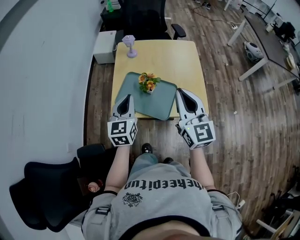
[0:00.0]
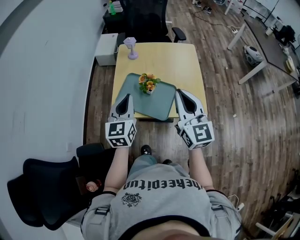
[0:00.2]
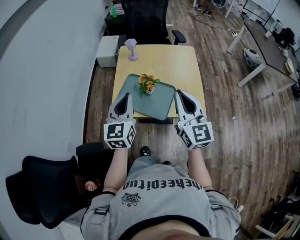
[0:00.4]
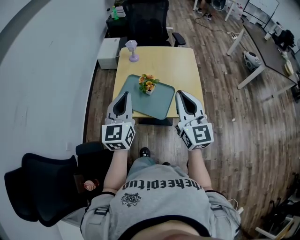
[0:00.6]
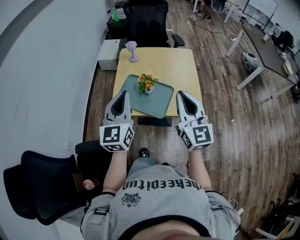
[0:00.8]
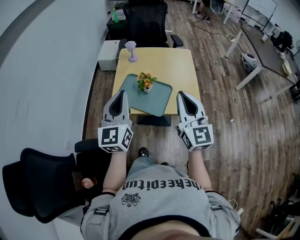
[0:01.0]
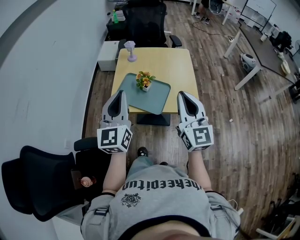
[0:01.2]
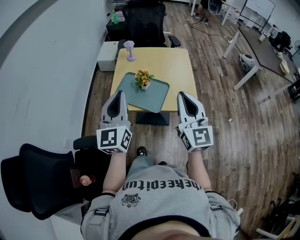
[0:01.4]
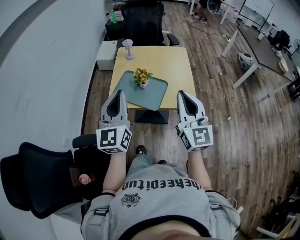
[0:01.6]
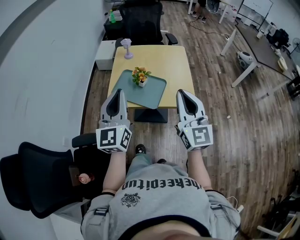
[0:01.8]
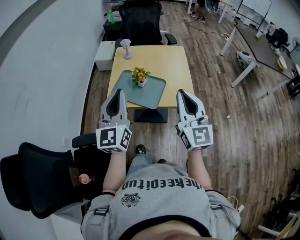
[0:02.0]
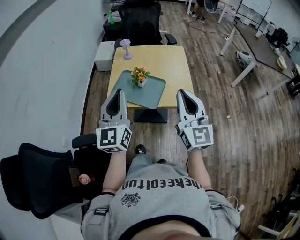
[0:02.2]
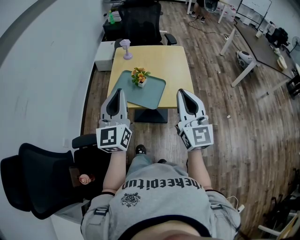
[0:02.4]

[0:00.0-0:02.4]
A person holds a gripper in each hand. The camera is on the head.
0:00.0 to 0:01.2: The right gripper moves backward, roughly 10 cm; the left gripper heads upward and backward, covering roughly 20 cm, and changes its angle by about 20 degrees.
0:01.2 to 0:02.4: The right gripper moves roughly 5 cm.

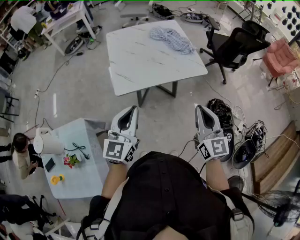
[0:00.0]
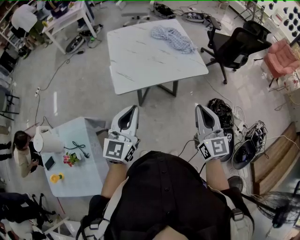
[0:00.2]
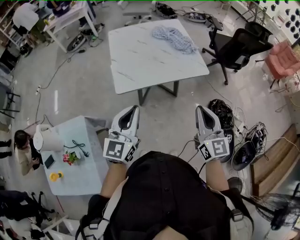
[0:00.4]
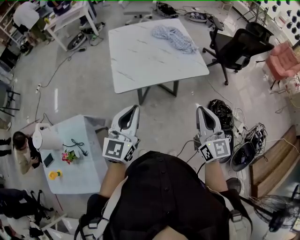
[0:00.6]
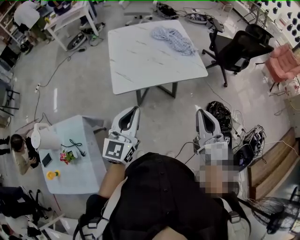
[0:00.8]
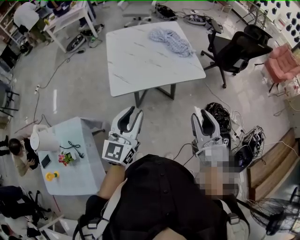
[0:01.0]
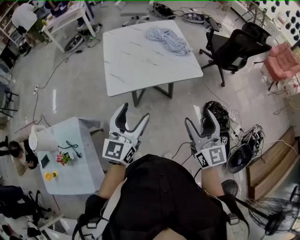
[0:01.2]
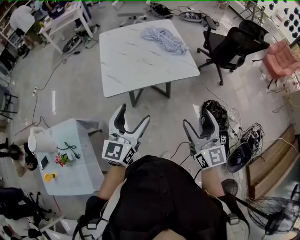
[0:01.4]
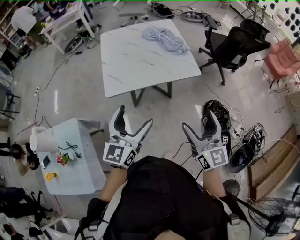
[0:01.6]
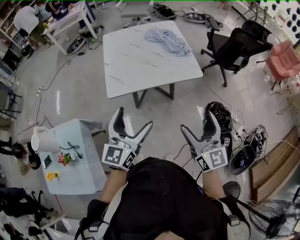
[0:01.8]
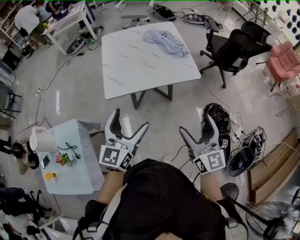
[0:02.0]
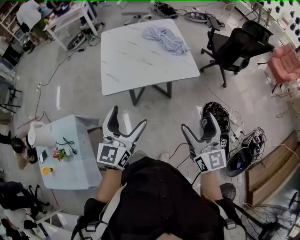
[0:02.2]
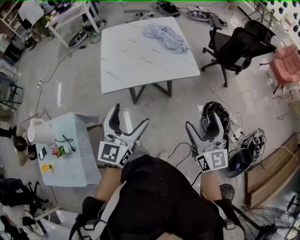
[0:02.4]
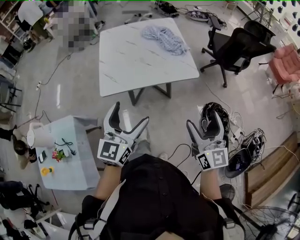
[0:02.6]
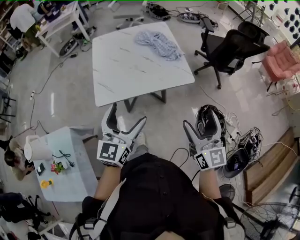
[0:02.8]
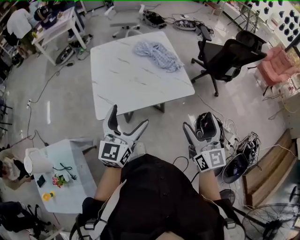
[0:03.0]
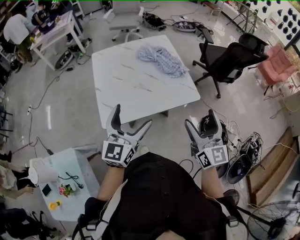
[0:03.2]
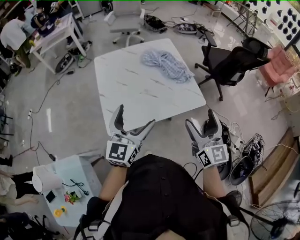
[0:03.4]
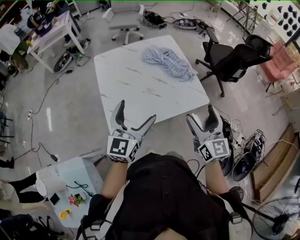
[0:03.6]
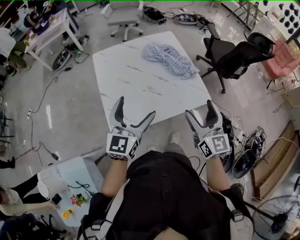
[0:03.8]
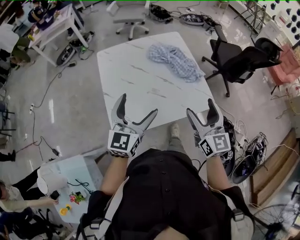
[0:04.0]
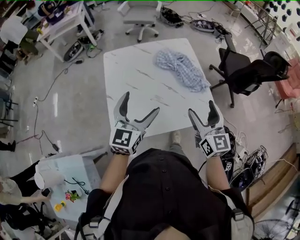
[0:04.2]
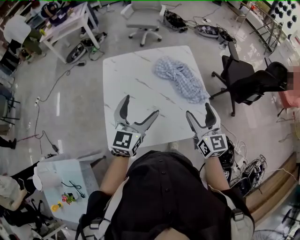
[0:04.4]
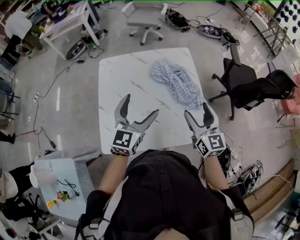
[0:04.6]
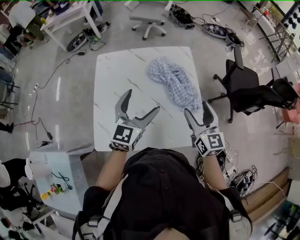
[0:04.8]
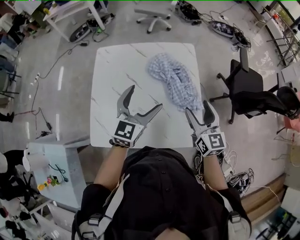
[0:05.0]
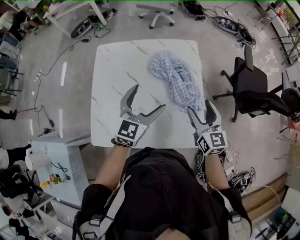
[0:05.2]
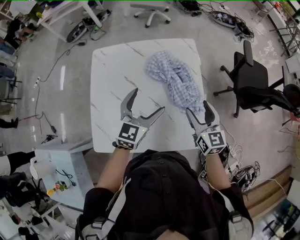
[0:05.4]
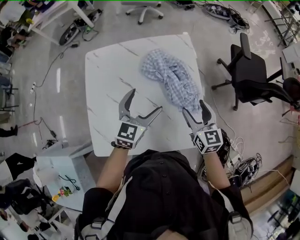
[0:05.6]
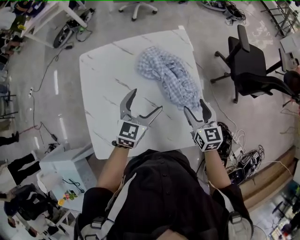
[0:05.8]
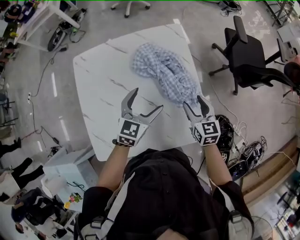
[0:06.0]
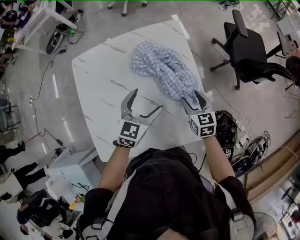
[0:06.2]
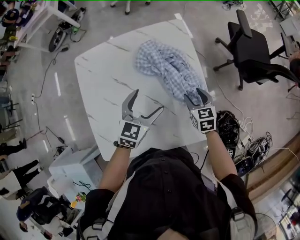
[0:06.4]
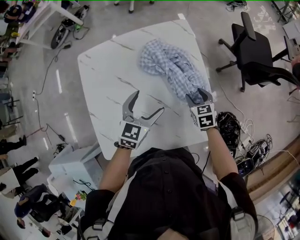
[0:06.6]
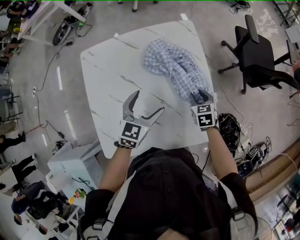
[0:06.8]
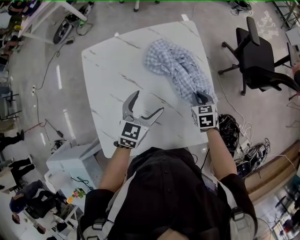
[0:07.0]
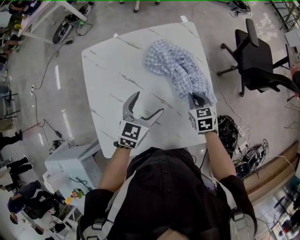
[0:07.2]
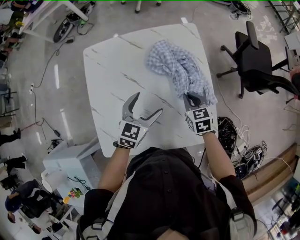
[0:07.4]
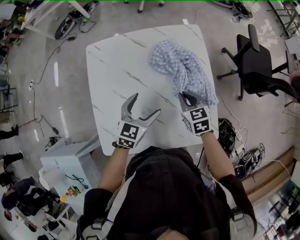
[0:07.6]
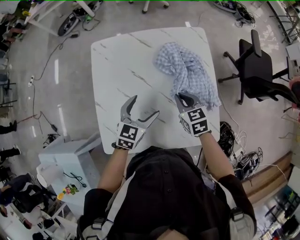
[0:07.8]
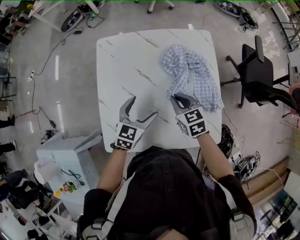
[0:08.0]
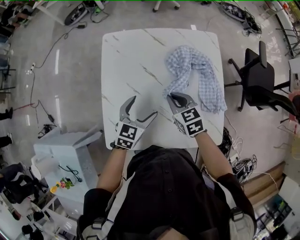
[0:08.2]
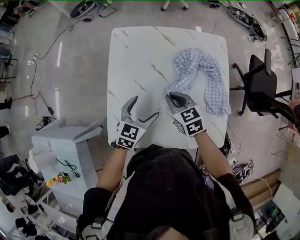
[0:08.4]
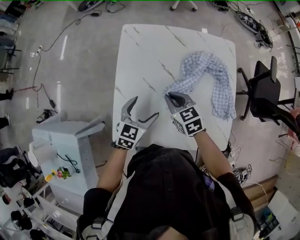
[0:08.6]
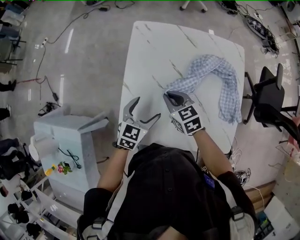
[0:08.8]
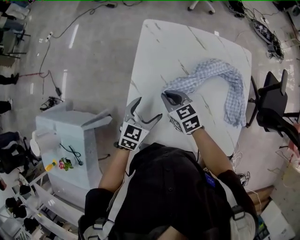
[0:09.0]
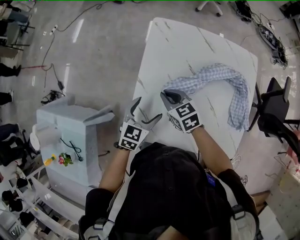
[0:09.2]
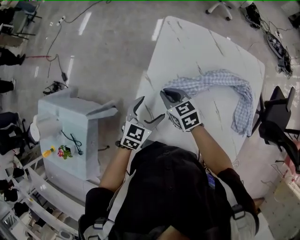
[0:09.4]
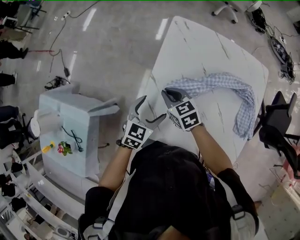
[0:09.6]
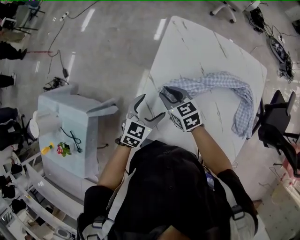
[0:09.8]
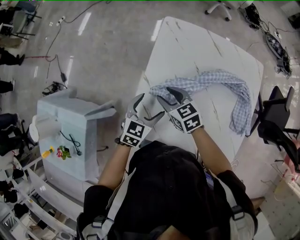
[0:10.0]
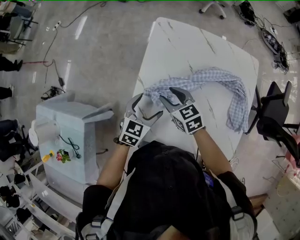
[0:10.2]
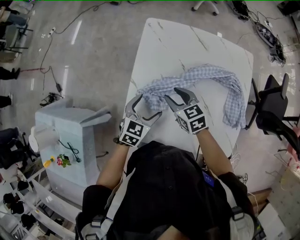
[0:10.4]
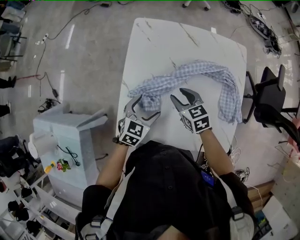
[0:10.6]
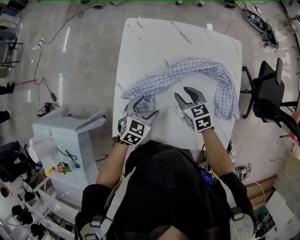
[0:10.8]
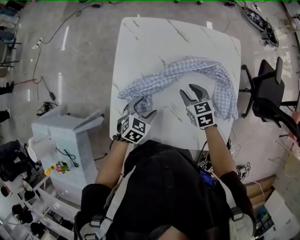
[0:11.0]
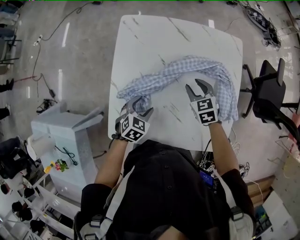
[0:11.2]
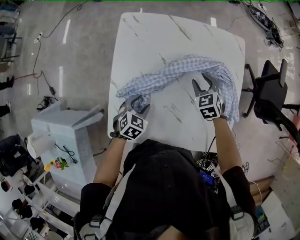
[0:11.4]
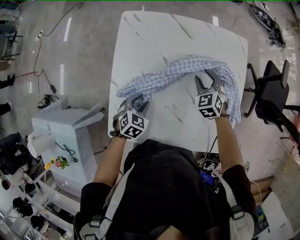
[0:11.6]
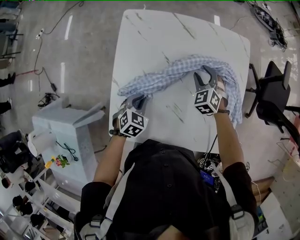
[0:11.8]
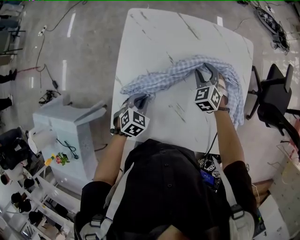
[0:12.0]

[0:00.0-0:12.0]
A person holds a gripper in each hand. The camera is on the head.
0:00.0 to 0:01.6: Both grippers move to the right, some 10 cm. The left gripper opens; the right gripper opens.
0:01.6 to 0:03.0: Both grippers travel together forward, some 15 cm.
0:03.0 to 0:04.4: The grippers both shift forward by about 30 cm.
0:04.4 to 0:06.0: The right gripper heads downward, forward and to the right, covering some 25 cm, and rotates about 30 degrees, while the left gripper is displaced forward, downward and to the right by some 25 cm, and turns by roughly 20 degrees.
0:06.0 to 0:07.6: The left gripper is displaced to the left by some 10 cm. The right gripper goes roughly 10 cm to the left, and closes up.
0:07.6 to 0:09.0: The left gripper ends up roughly 20 cm from where it was; the right gripper shifts by some 30 cm, and turns by roughly 30 degrees.
0:09.0 to 0:10.4: The right gripper travels to the left and back again, roughly 10 cm each way, and opens.
0:10.4 to 0:12.0: The right gripper is displaced to the right, forward and downward by some 25 cm, and changes its angle by about 40 degrees; the left gripper shifts roughly 10 cm downward, turns by approximately 20 degrees, and closes its fingers.

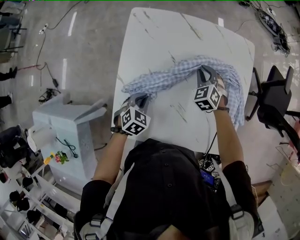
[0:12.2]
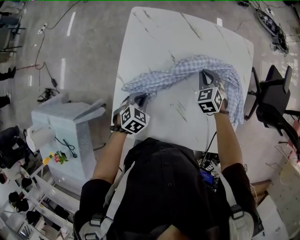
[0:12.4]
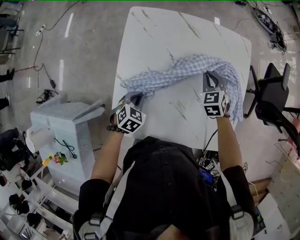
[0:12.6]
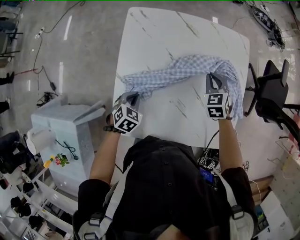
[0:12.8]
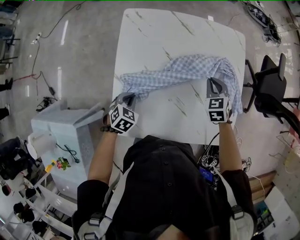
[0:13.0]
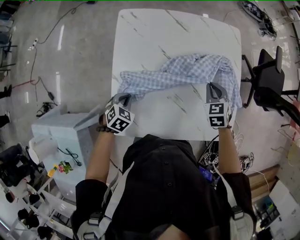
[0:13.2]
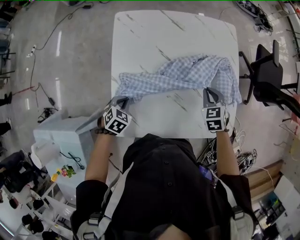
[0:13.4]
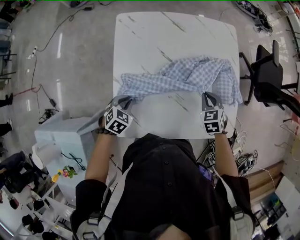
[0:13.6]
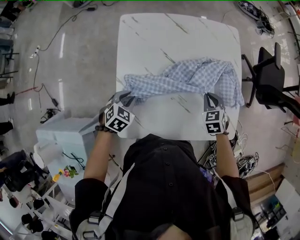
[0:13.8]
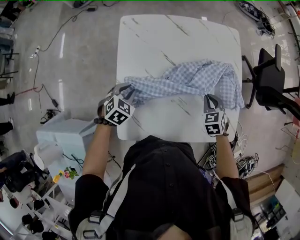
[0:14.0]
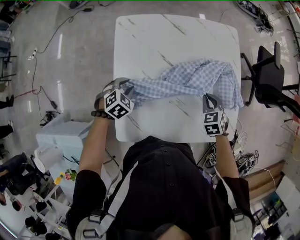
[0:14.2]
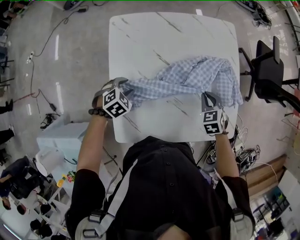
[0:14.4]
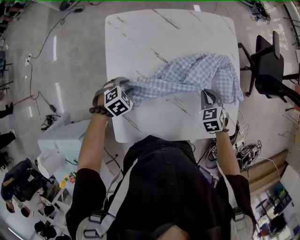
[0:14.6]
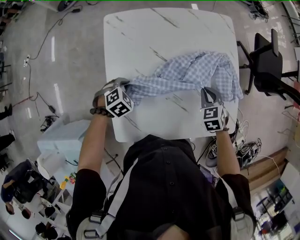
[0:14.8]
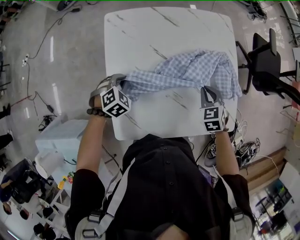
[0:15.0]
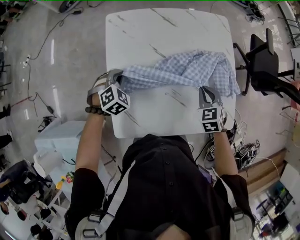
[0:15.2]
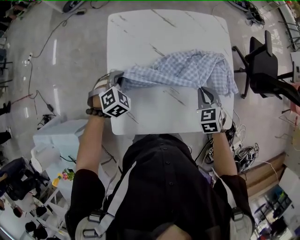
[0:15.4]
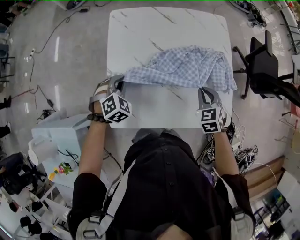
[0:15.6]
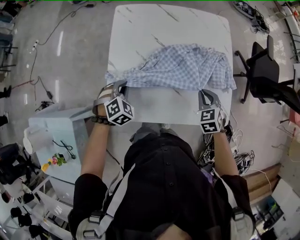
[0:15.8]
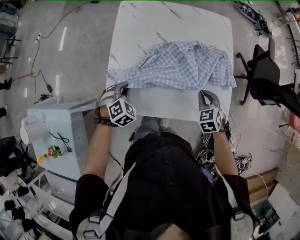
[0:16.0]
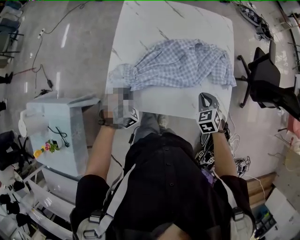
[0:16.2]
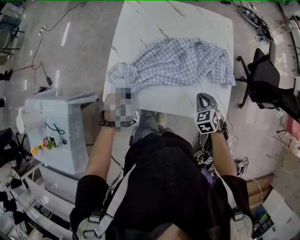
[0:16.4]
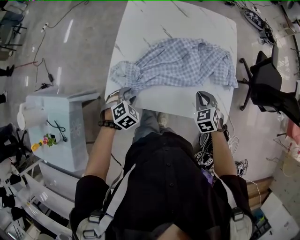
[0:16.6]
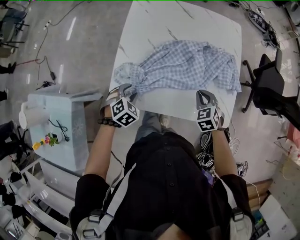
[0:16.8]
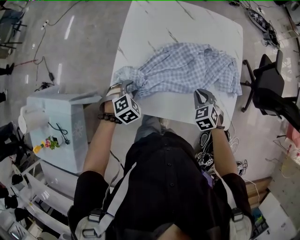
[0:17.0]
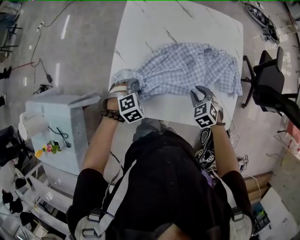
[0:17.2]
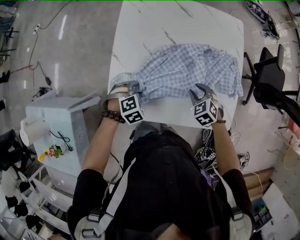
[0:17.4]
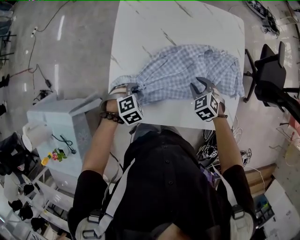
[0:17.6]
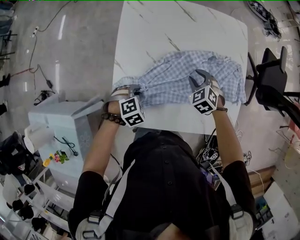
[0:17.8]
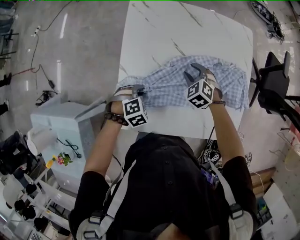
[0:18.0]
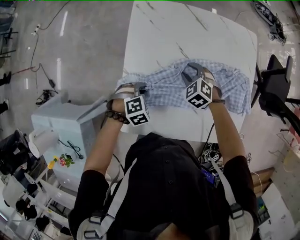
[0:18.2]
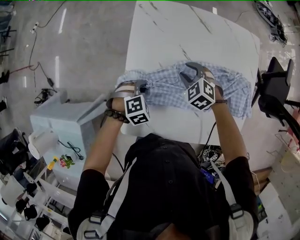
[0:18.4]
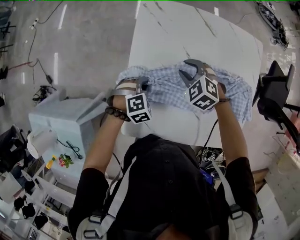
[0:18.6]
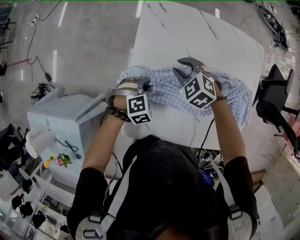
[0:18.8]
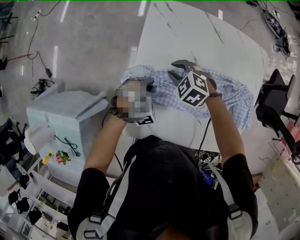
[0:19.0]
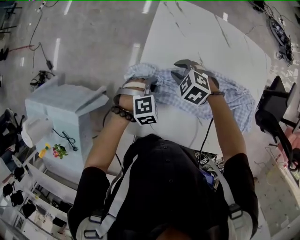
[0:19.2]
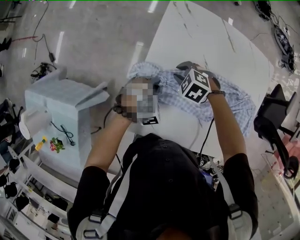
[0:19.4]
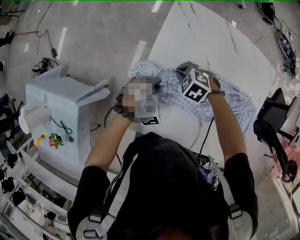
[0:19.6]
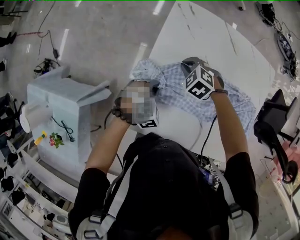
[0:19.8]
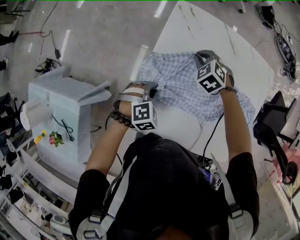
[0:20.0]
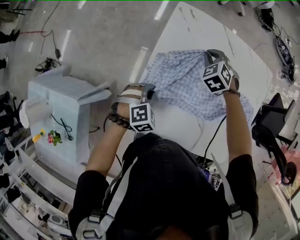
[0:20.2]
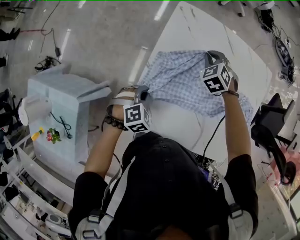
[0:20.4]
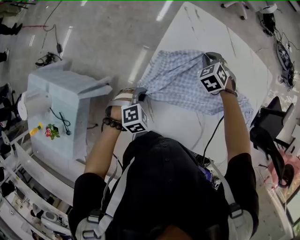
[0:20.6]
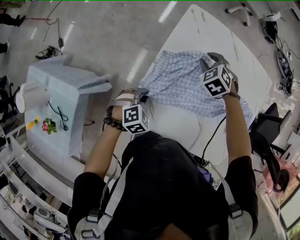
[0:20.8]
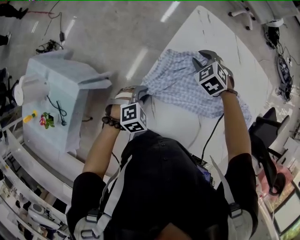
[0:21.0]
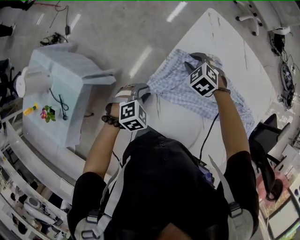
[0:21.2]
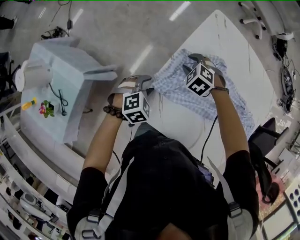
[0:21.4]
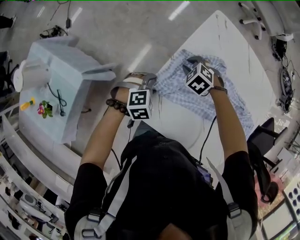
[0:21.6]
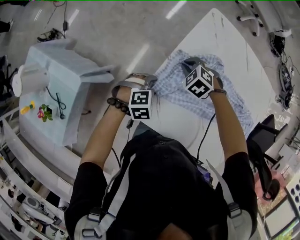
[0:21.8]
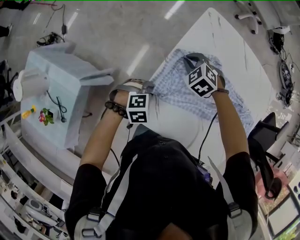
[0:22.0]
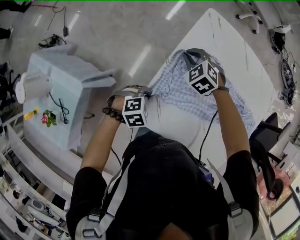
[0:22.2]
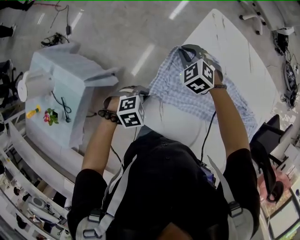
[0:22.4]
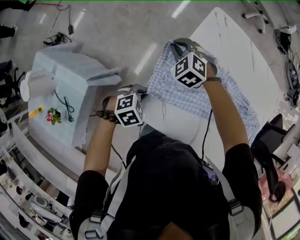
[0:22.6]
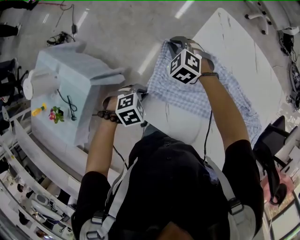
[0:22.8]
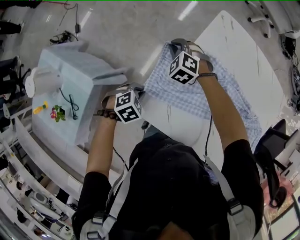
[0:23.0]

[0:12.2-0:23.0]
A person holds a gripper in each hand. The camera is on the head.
0:12.2 to 0:13.8: The right gripper is displaced backward and to the right by roughly 20 cm, and turns by roughly 30 degrees, while the left gripper moves to the left, roughly 5 cm.
0:13.8 to 0:15.2: The left gripper shifts roughly 10 cm forward, and turns by some 20 degrees.
0:15.2 to 0:16.8: The left gripper moves backward, about 25 cm, and turns by about 20 degrees, while the right gripper moves backward, about 10 cm.
0:16.8 to 0:18.4: The right gripper is displaced forward and to the left by roughly 30 cm, turns by some 20 degrees, and opens; the left gripper travels forward by about 20 cm, and turns by roughly 20 degrees.
0:18.4 to 0:20.0: The right gripper moves about 10 cm, and closes.
0:20.0 to 0:21.4: Both grippers move to the left and backward, approximately 15 cm. The right gripper swivels roughly 20 degrees, and opens its fingers.
0:21.4 to 0:23.0: The left gripper heads to the left, covering approximately 5 cm, while the right gripper shifts approximately 10 cm to the left.
